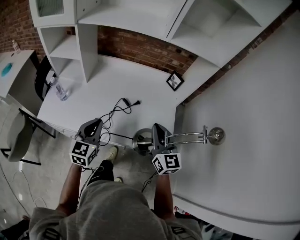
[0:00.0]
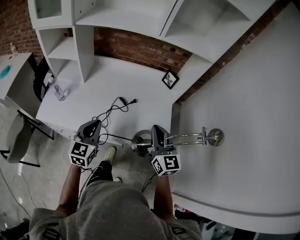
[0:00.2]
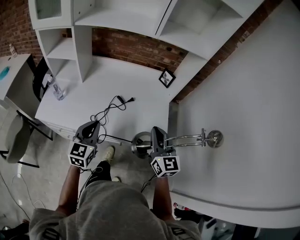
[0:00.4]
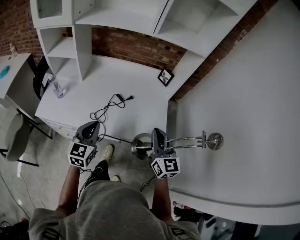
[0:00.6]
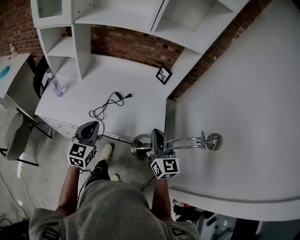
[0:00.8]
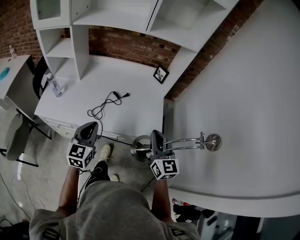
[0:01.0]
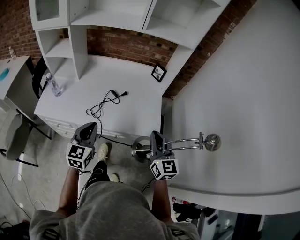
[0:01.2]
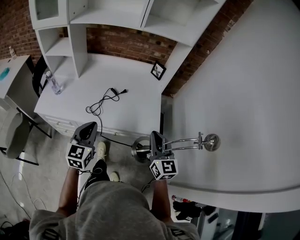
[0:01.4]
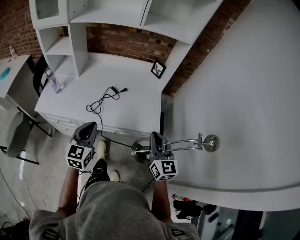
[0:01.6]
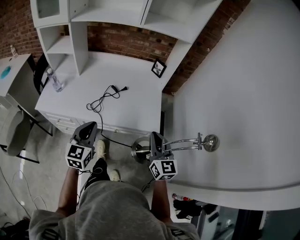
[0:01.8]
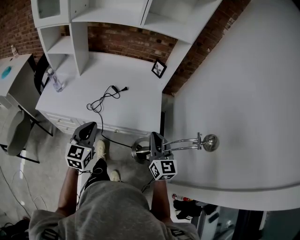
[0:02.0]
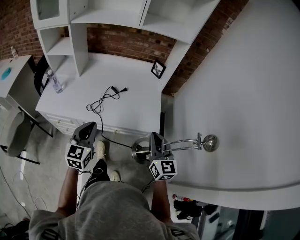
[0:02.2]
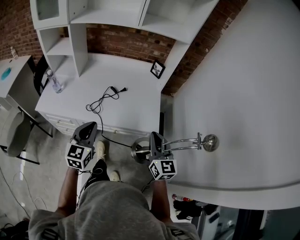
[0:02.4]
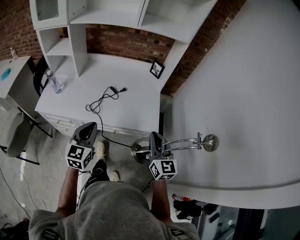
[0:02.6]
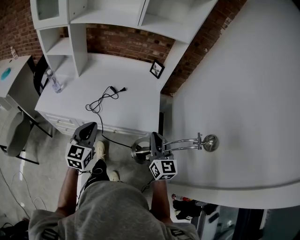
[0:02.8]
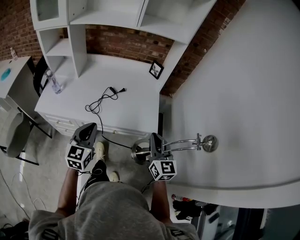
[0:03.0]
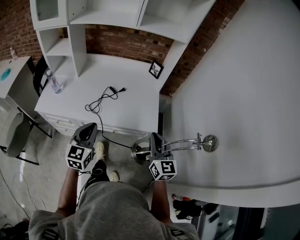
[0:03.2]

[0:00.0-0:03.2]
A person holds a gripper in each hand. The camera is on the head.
0:00.0 to 0:01.6: The grippers both shift backward and to the right by approximately 15 cm.
0:01.6 to 0:03.2: The grippers make only small movements.

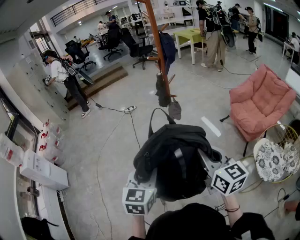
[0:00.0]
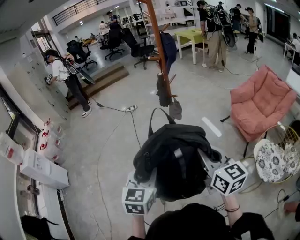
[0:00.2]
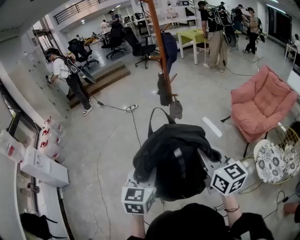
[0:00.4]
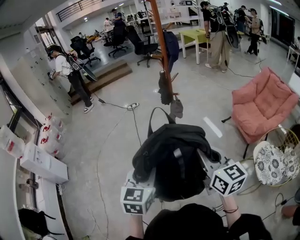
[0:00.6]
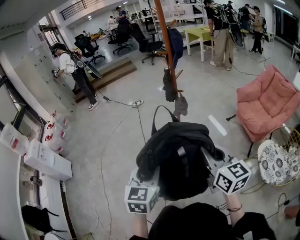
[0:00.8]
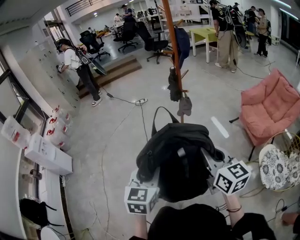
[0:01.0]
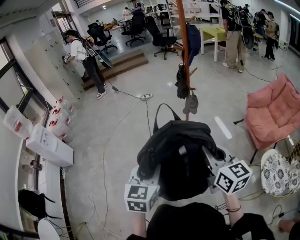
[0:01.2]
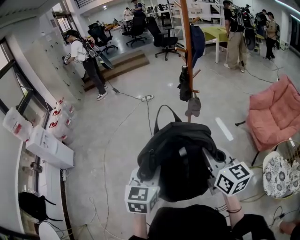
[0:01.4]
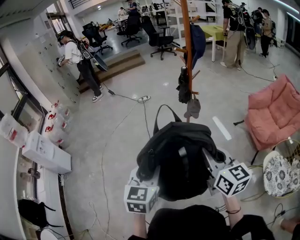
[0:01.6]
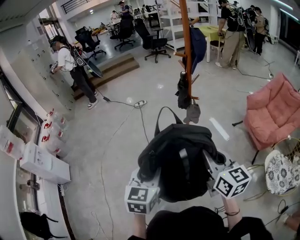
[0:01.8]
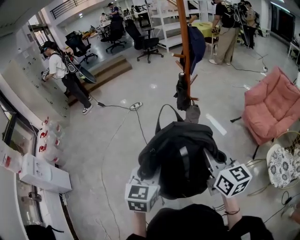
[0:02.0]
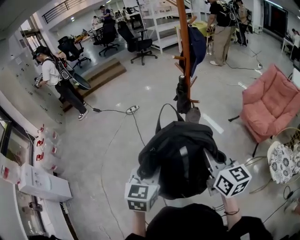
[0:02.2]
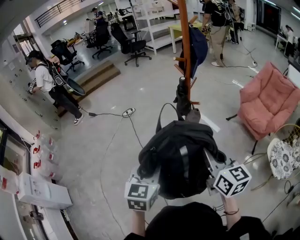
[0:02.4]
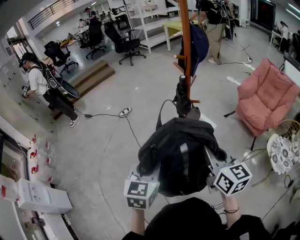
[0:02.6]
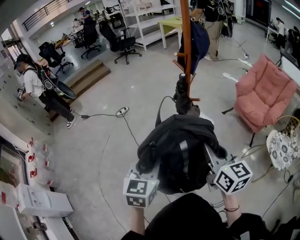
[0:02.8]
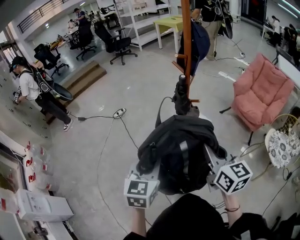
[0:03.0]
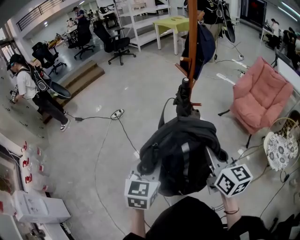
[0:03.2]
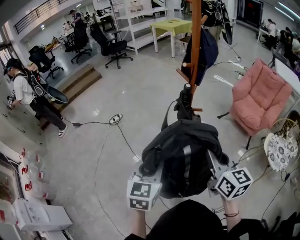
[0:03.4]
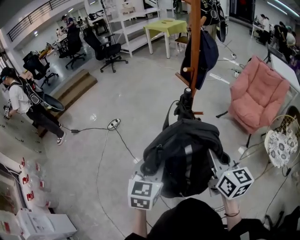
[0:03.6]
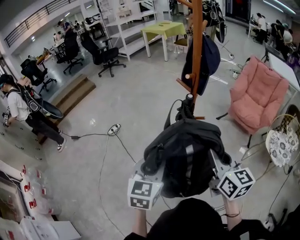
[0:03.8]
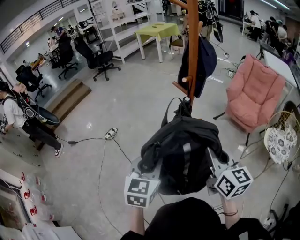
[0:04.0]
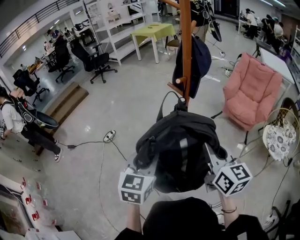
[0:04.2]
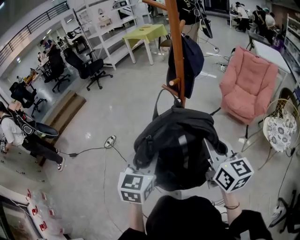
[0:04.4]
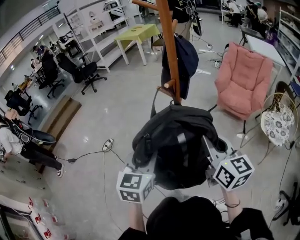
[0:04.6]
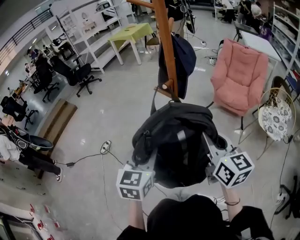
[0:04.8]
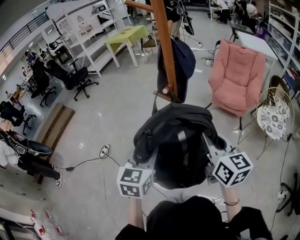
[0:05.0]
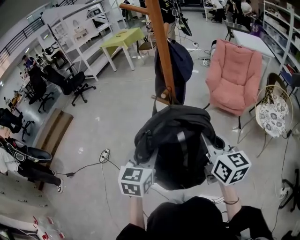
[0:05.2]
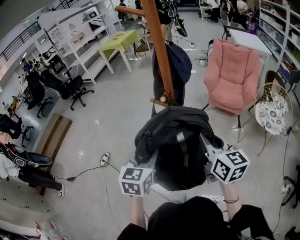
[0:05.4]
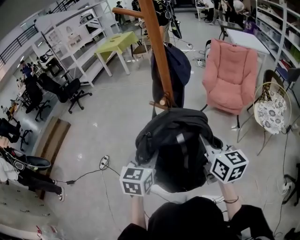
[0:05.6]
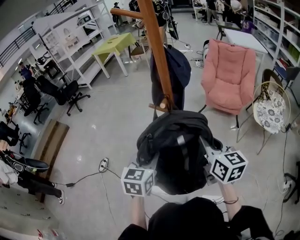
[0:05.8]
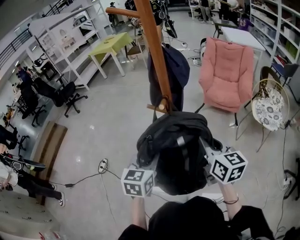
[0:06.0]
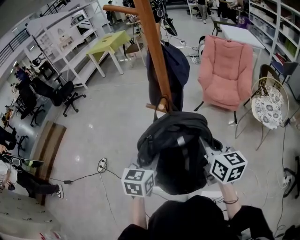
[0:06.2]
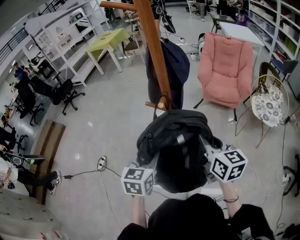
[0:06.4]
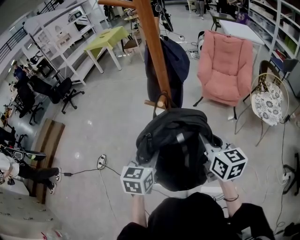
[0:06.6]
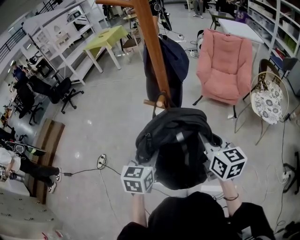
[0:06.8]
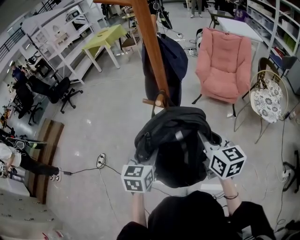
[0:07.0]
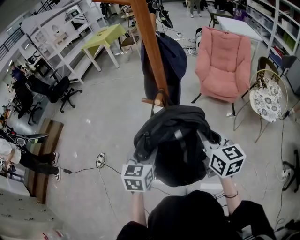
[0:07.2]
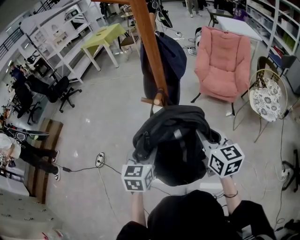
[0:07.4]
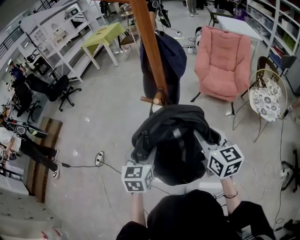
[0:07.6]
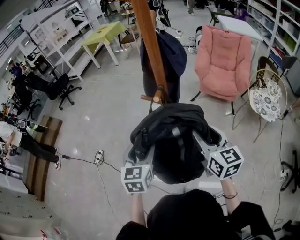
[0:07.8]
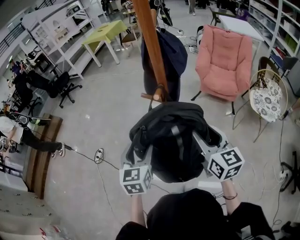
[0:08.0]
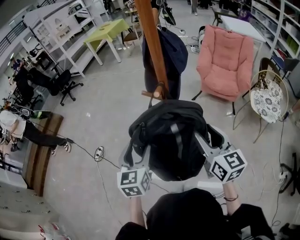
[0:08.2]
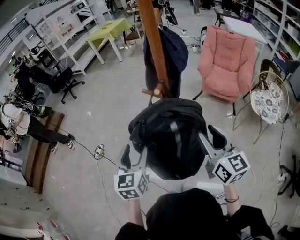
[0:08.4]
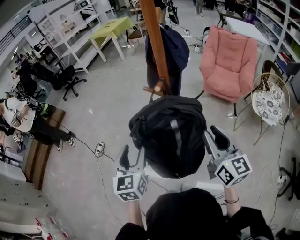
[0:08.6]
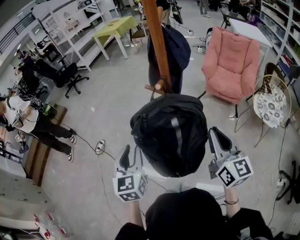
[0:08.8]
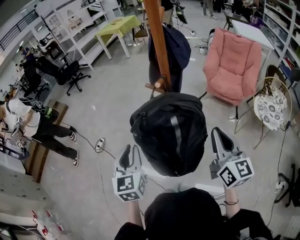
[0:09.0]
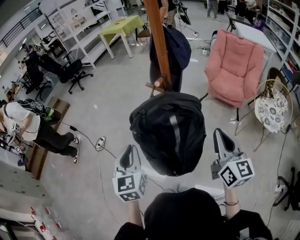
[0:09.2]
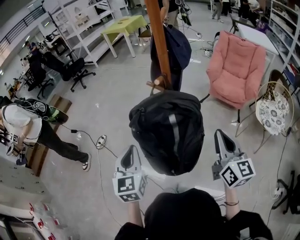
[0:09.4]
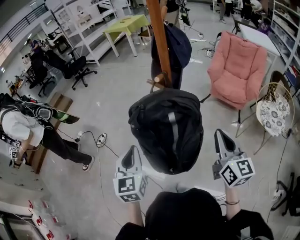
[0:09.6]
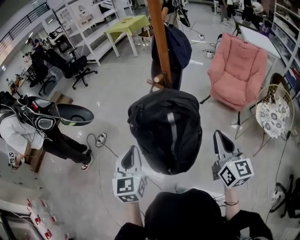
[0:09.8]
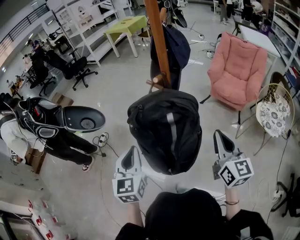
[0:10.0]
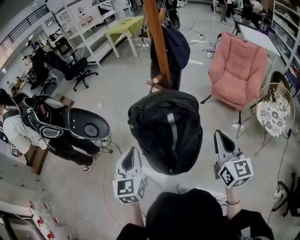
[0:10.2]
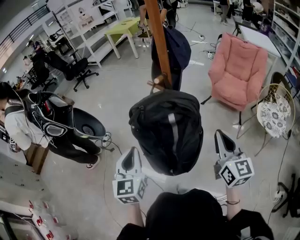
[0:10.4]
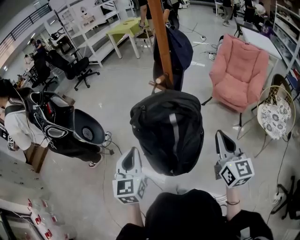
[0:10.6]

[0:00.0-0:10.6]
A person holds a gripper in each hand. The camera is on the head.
0:00.0 to 0:01.6: The right gripper is displaced forward and to the left by roughly 10 cm; the left gripper is displaced to the left by roughly 5 cm.
0:01.6 to 0:03.0: Both grippers move forward and to the left, approximately 25 cm. The right gripper changes its angle by some 20 degrees. Meanwhile the left gripper turns by roughly 20 degrees.
0:03.0 to 0:04.6: The left gripper goes approximately 20 cm forward, and changes its angle by about 20 degrees. The right gripper moves forward, roughly 15 cm, and swivels roughly 20 degrees.
0:04.6 to 0:06.0: The two grippers go about 10 cm forward and downward.
0:06.0 to 0:07.6: The left gripper opens.
0:07.6 to 0:09.0: The left gripper travels backward and to the left by some 10 cm, turns by some 20 degrees, and closes its fingers. The right gripper is displaced backward by about 5 cm, and closes its fingers.
0:09.0 to 0:10.6: The grippers move only a little.

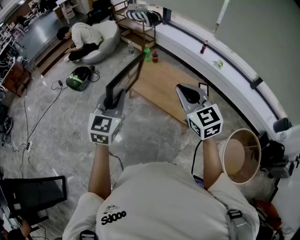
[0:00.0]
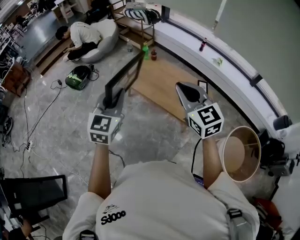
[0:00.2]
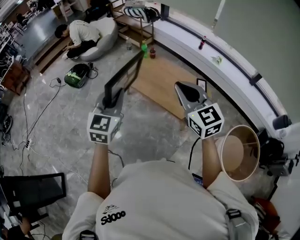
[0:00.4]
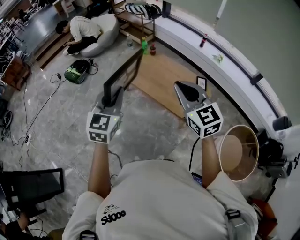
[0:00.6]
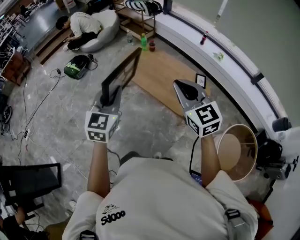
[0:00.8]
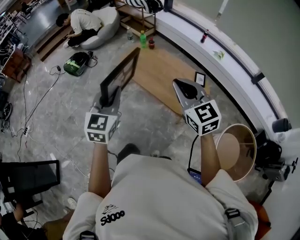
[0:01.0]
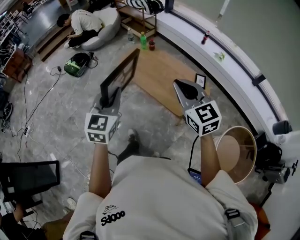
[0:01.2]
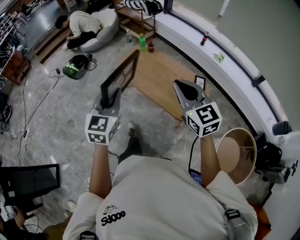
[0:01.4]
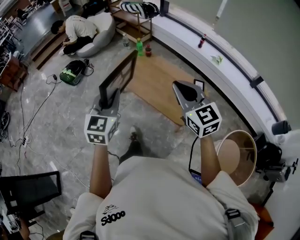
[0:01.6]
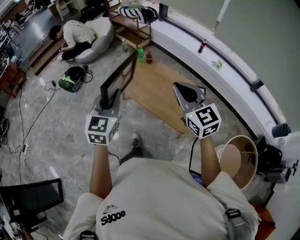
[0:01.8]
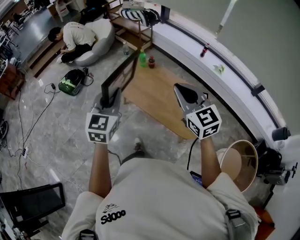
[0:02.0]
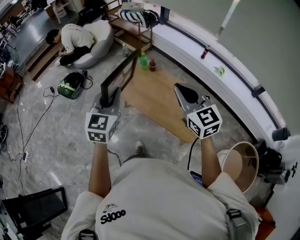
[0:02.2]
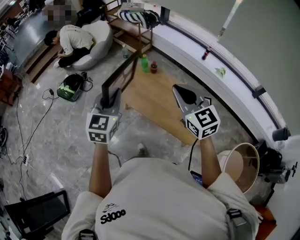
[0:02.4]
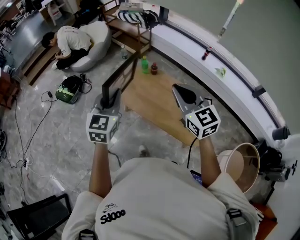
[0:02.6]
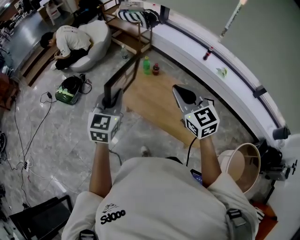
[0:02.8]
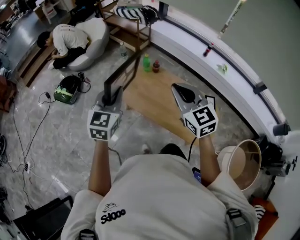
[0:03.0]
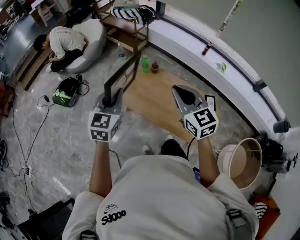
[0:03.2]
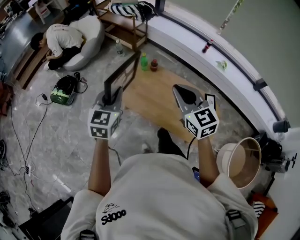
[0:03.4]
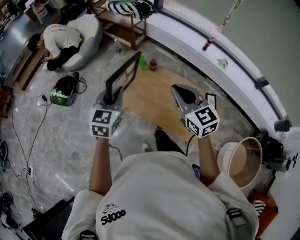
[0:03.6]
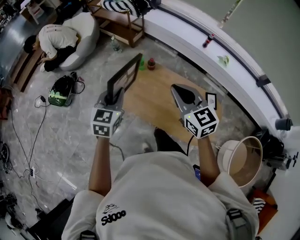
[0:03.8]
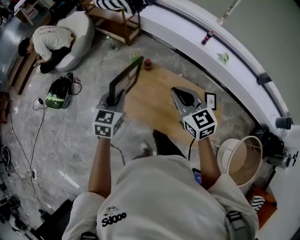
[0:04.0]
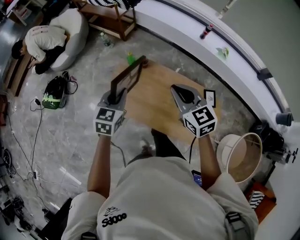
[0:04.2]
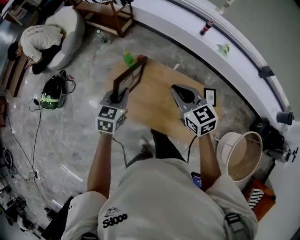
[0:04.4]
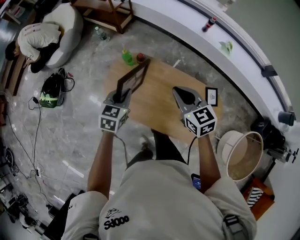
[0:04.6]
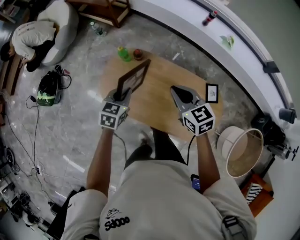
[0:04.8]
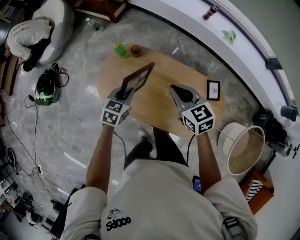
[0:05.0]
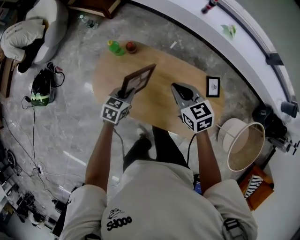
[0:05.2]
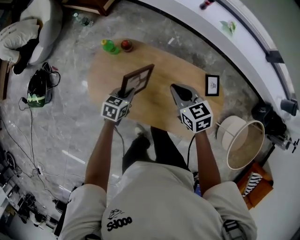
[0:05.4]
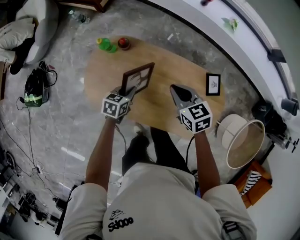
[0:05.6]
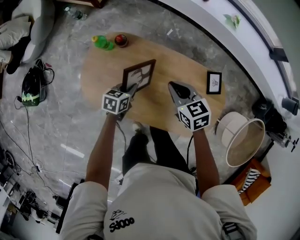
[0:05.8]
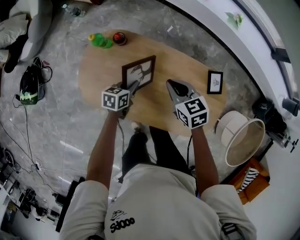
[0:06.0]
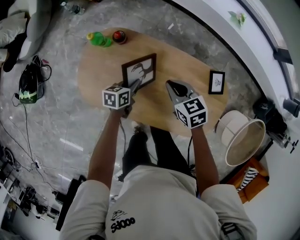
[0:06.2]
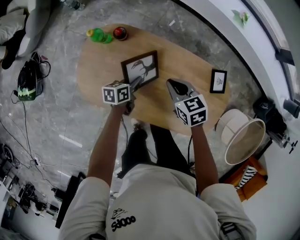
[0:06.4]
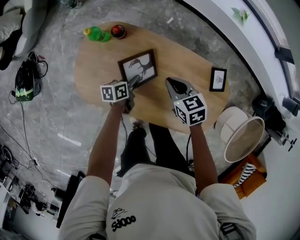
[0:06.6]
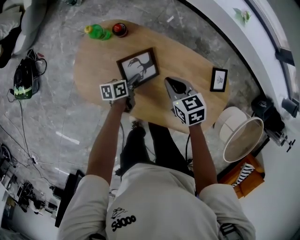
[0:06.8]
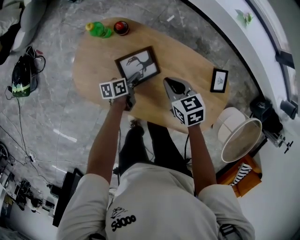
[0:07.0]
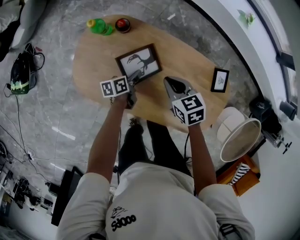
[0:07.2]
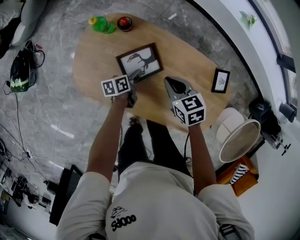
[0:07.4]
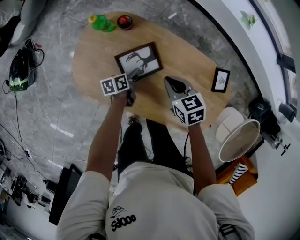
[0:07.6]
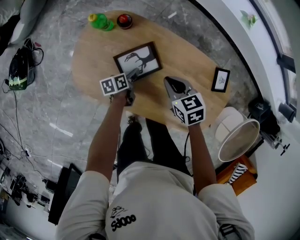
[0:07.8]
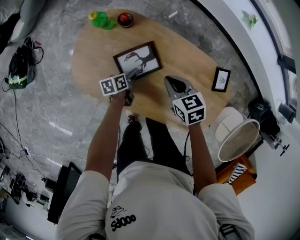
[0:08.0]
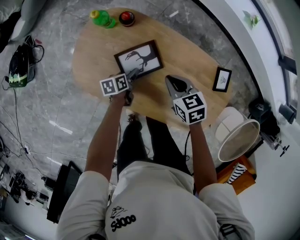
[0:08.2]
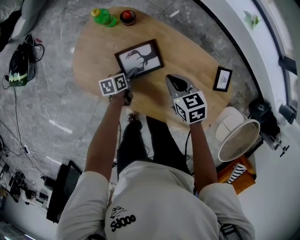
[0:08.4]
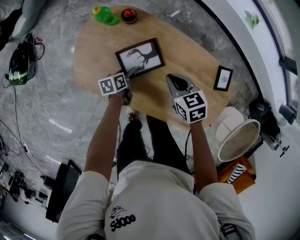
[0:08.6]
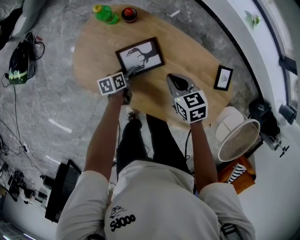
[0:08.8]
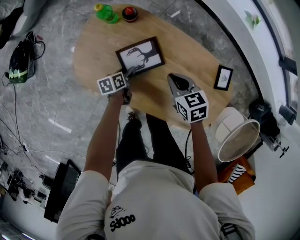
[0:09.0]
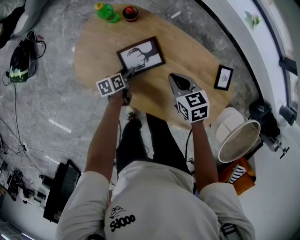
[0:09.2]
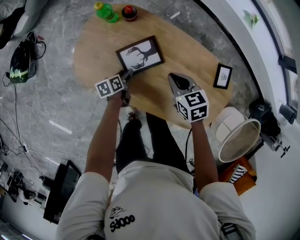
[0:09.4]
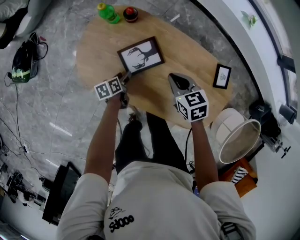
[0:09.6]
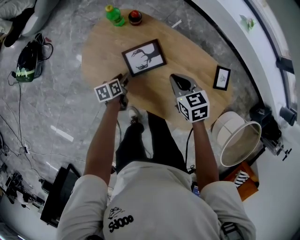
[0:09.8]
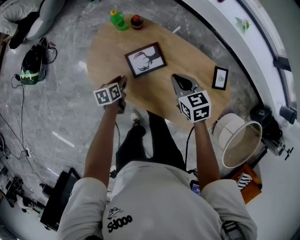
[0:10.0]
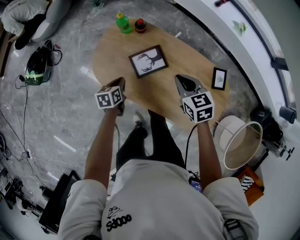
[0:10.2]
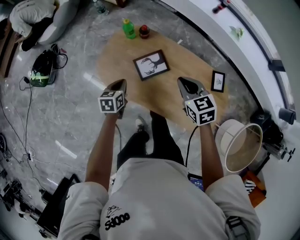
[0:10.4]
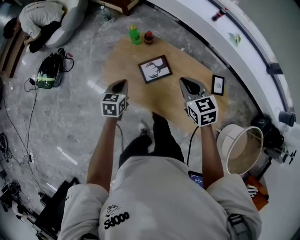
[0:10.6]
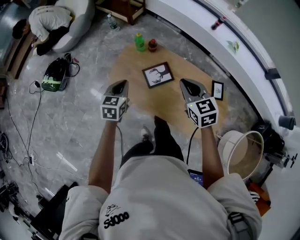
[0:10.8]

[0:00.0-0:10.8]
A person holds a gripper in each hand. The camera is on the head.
0:00.0 to 0:01.6: Both grippers travel together to the right, approximately 5 cm.
0:01.6 to 0:03.0: The right gripper heads forward and to the left, covering some 30 cm. The left gripper shifts some 30 cm forward.
0:03.0 to 0:04.6: The left gripper shifts some 35 cm downward, forward and to the right, and turns by roughly 30 degrees; the right gripper goes about 30 cm forward, downward and to the right, and rotates roughly 20 degrees.
0:04.6 to 0:06.2: The grippers both shift downward by about 25 cm. The left gripper changes its angle by approximately 40 degrees. Meanwhile the right gripper swivels roughly 20 degrees.
0:06.2 to 0:07.8: The right gripper heads downward, covering approximately 5 cm; the left gripper travels downward by about 10 cm, turns by some 30 degrees, and opens its fingers.
0:07.8 to 0:09.2: The left gripper changes place by roughly 5 cm.
0:09.2 to 0:10.8: Both grippers move upward, approximately 30 cm. The left gripper rotates around the line of its fingers by about 50 degrees, clockwise from behind, and closes up. Meanwhile the right gripper swivels approximately 30 degrees.
